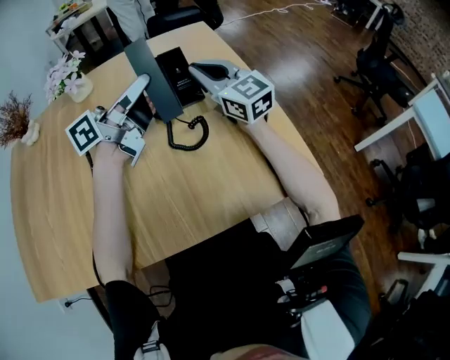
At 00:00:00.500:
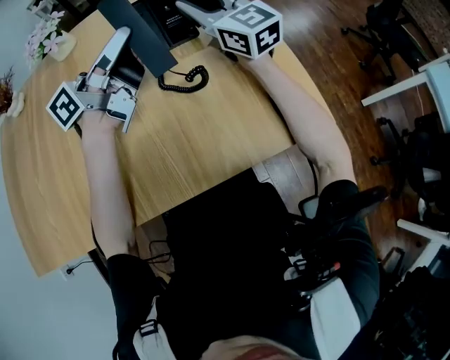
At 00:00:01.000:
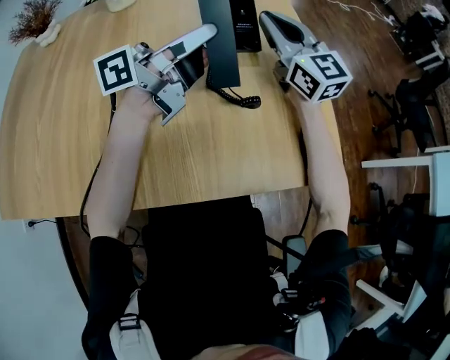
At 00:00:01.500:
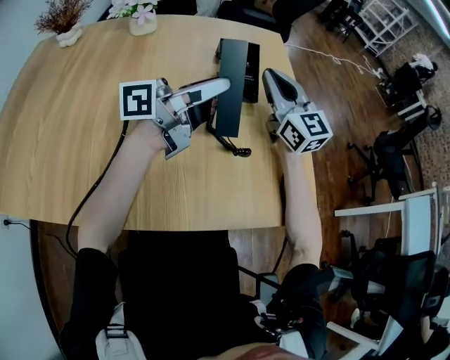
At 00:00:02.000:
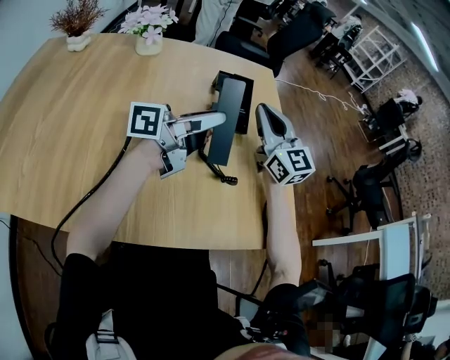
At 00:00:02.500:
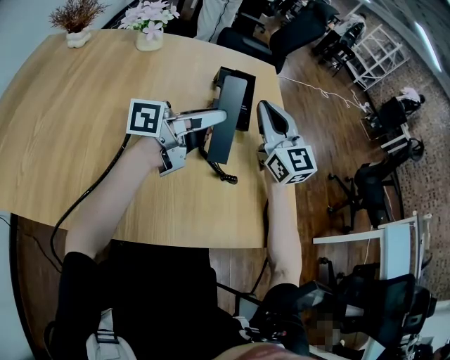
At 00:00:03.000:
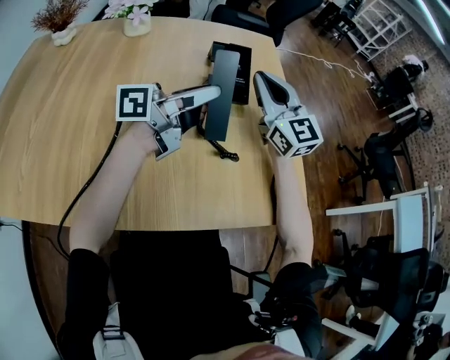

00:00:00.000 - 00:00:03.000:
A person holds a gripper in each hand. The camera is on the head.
00:00:00.000 - 00:00:01.500: The left gripper changes place by about 5 cm.
00:00:01.500 - 00:00:03.000: The grippers make only small movements.

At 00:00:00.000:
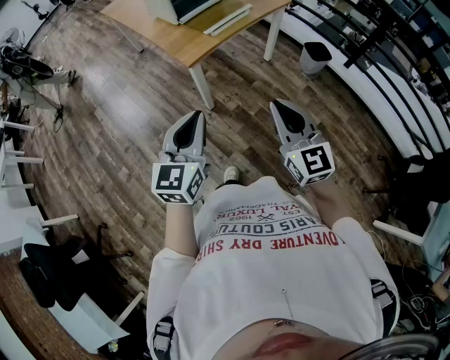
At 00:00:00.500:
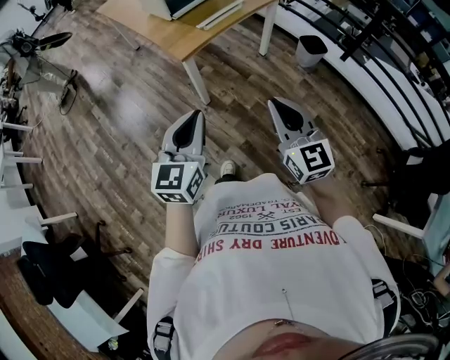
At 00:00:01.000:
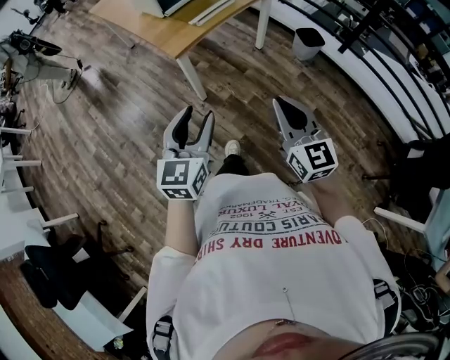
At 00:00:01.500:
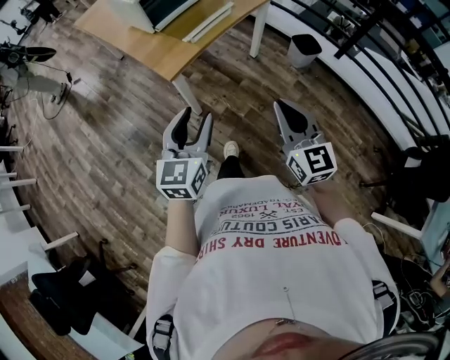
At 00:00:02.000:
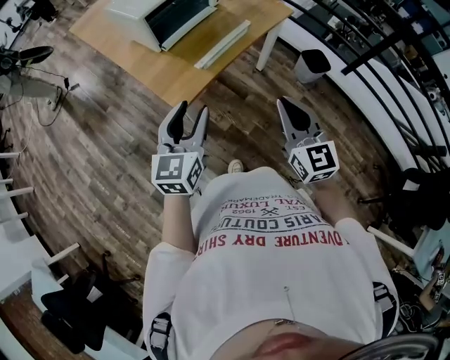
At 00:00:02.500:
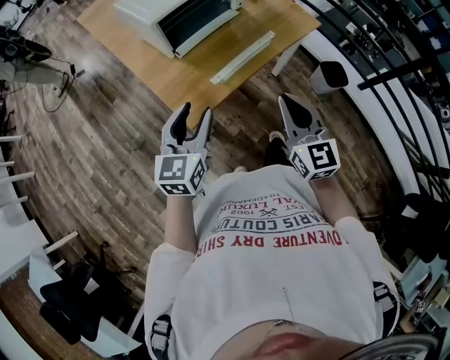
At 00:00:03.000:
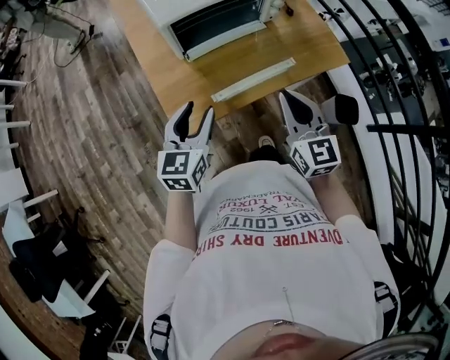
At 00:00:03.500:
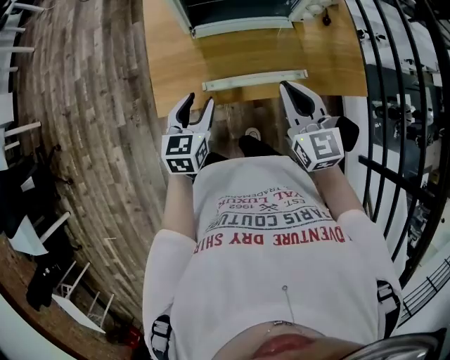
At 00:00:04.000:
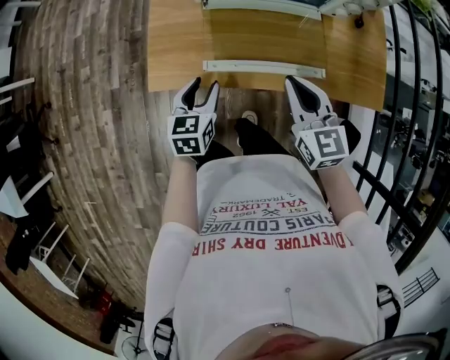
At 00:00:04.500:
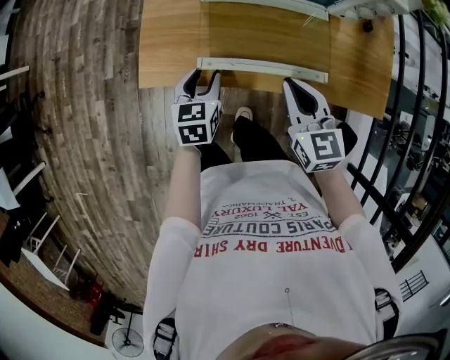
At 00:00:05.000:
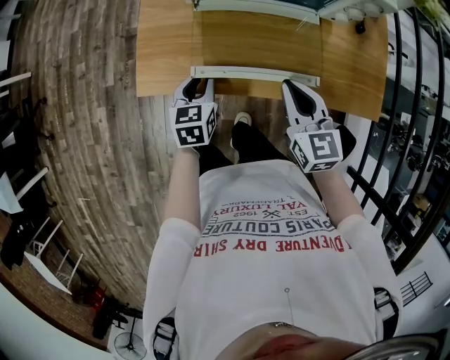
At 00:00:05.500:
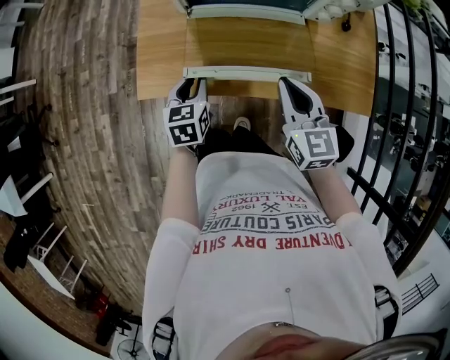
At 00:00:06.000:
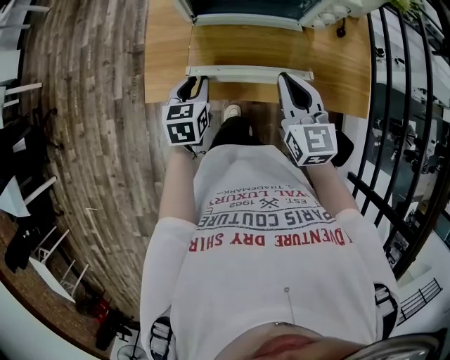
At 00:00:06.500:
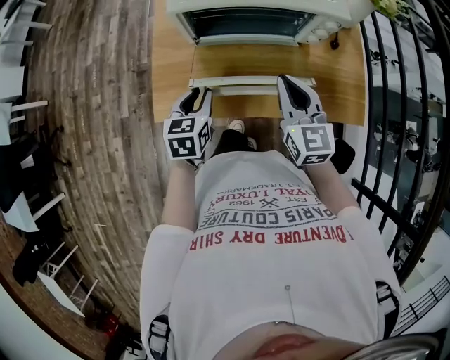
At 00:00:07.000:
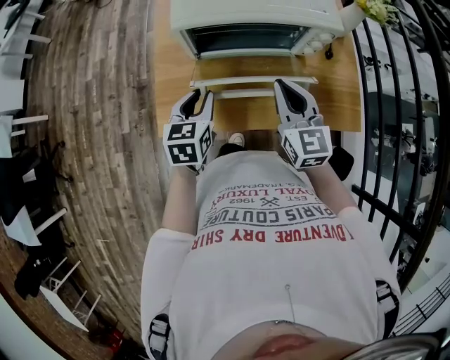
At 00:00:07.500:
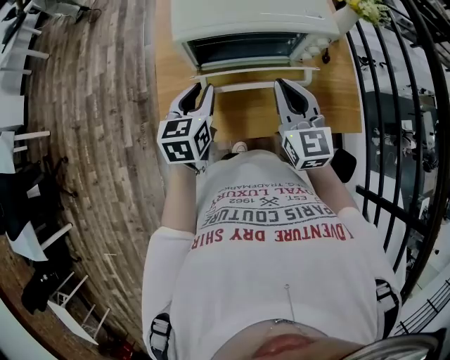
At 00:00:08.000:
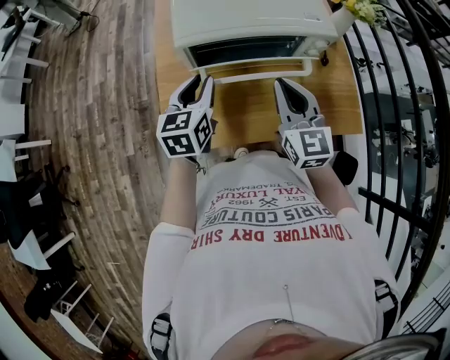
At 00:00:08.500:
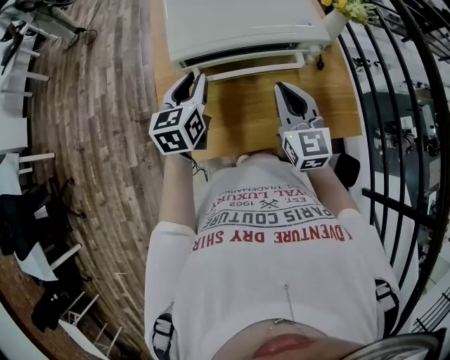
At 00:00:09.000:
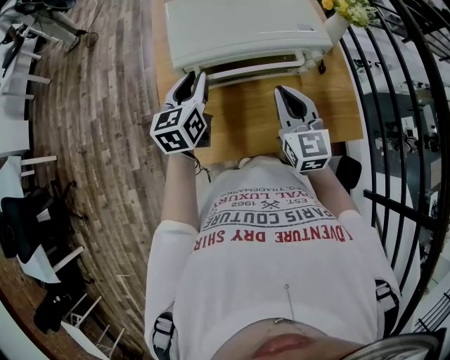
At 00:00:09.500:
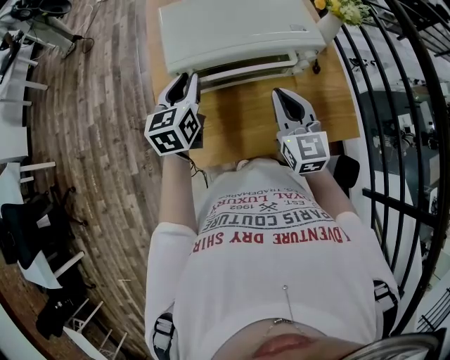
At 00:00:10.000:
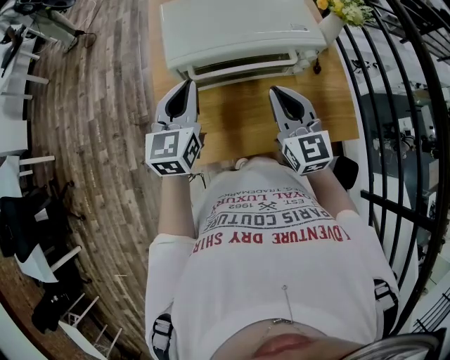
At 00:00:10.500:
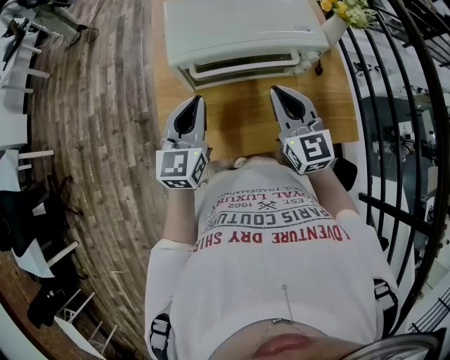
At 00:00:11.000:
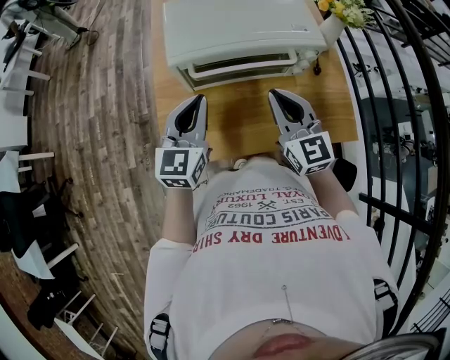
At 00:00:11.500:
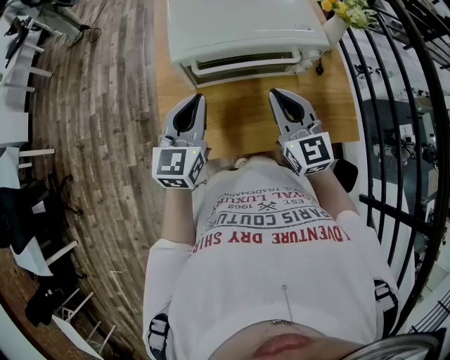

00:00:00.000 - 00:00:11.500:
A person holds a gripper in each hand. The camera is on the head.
00:00:00.000 - 00:00:02.000: The grippers both shift forward by roughly 30 cm. The left gripper opens its fingers.
00:00:02.000 - 00:00:04.000: The right gripper ends up about 35 cm from where it was, and swivels roughly 50 degrees; the left gripper heads downward, covering some 25 cm, and swivels about 60 degrees.
00:00:04.000 - 00:00:06.000: The left gripper ends up roughly 5 cm from where it was. Meanwhile the right gripper shifts by approximately 5 cm.
00:00:06.000 - 00:00:07.500: The right gripper is displaced upward and forward by roughly 10 cm. Meanwhile the left gripper goes about 15 cm upward and forward.
00:00:07.500 - 00:00:09.500: The left gripper goes roughly 10 cm forward.
00:00:09.500 - 00:00:11.500: The left gripper moves backward, about 10 cm, and closes its fingers.

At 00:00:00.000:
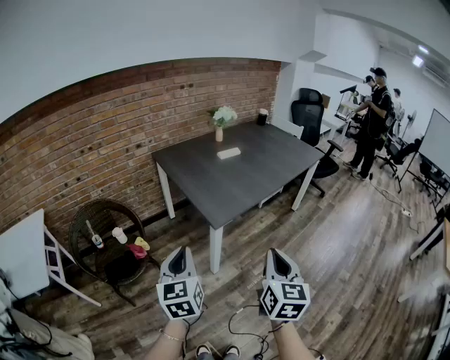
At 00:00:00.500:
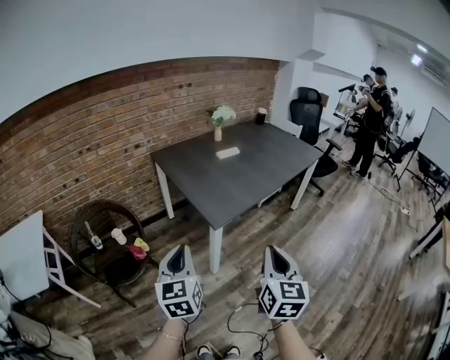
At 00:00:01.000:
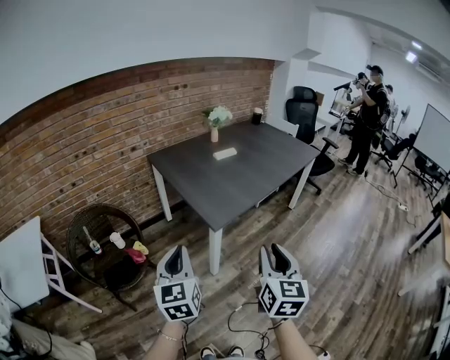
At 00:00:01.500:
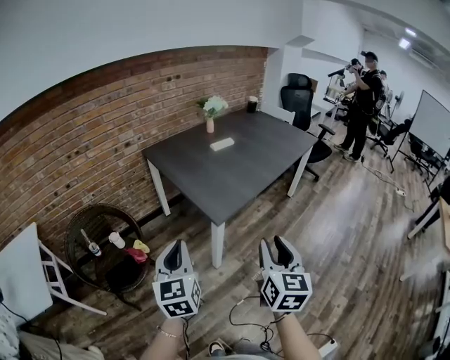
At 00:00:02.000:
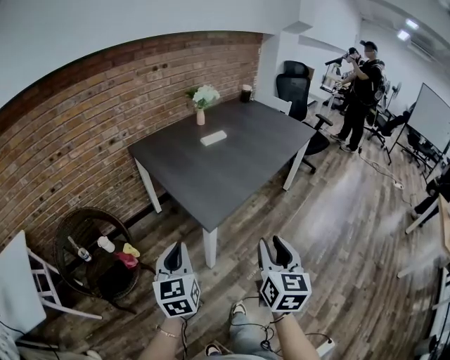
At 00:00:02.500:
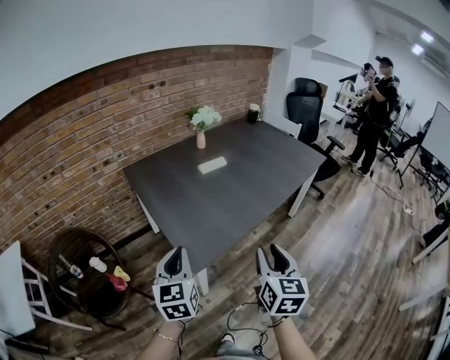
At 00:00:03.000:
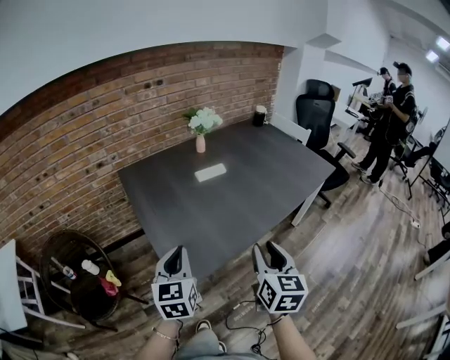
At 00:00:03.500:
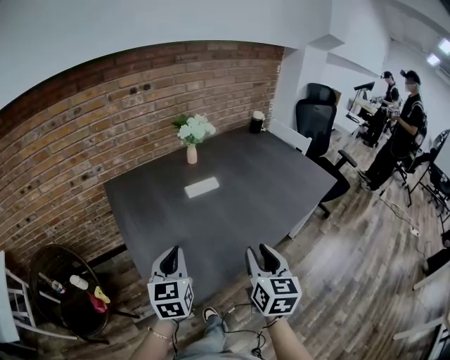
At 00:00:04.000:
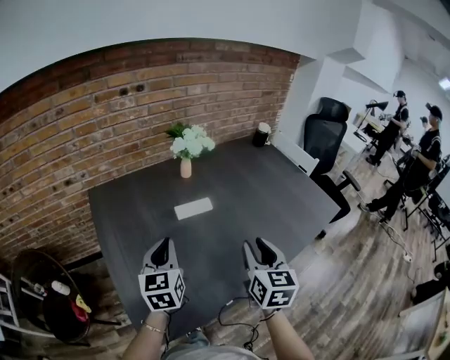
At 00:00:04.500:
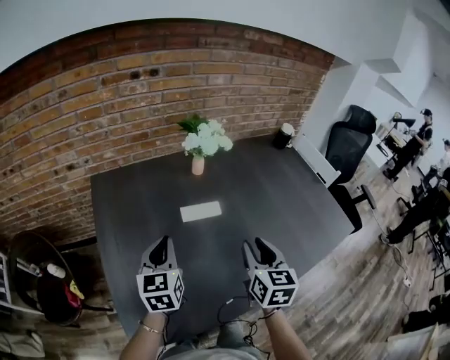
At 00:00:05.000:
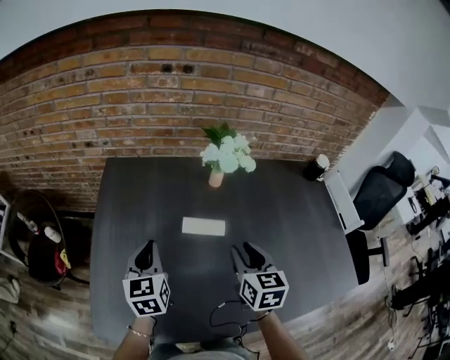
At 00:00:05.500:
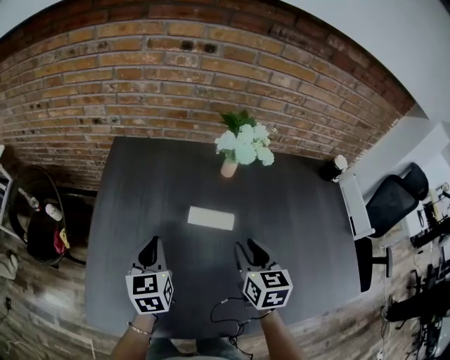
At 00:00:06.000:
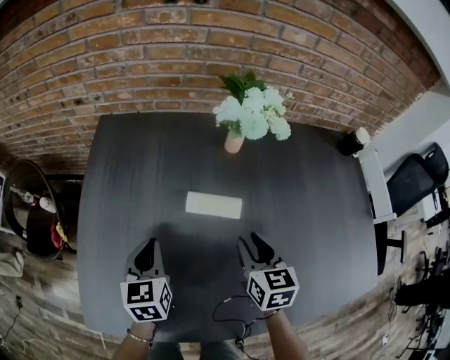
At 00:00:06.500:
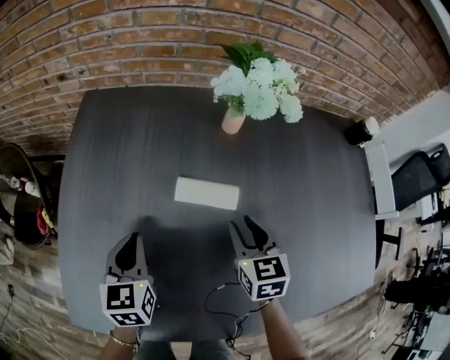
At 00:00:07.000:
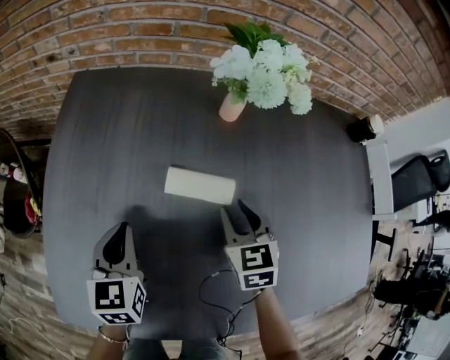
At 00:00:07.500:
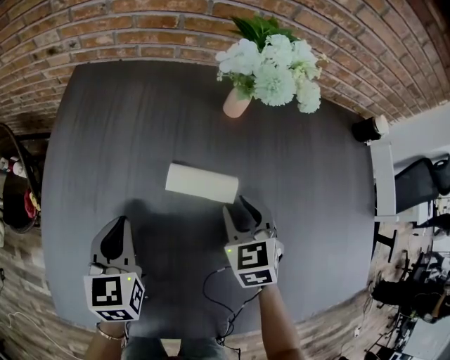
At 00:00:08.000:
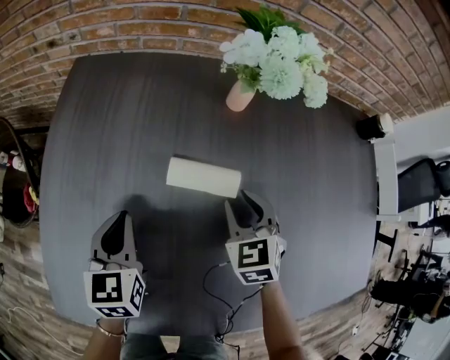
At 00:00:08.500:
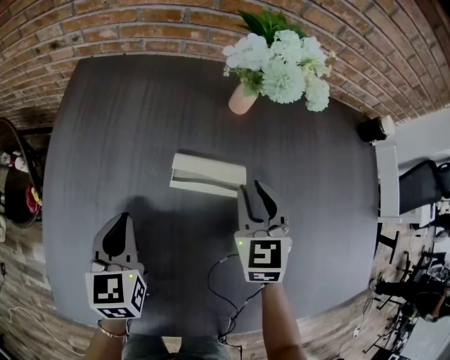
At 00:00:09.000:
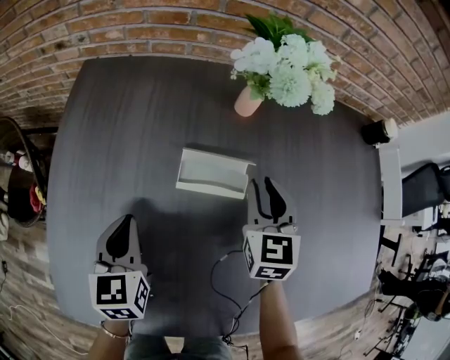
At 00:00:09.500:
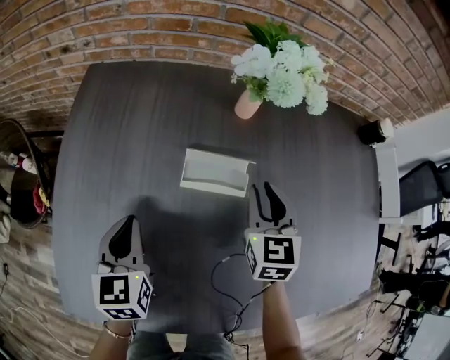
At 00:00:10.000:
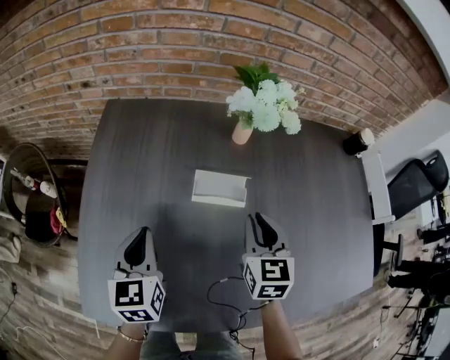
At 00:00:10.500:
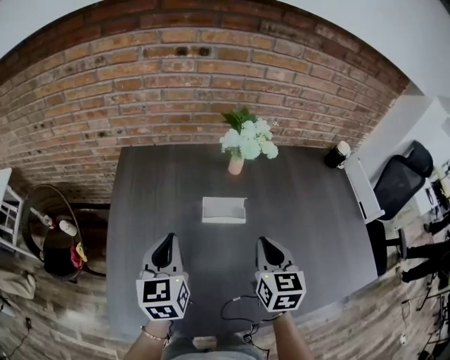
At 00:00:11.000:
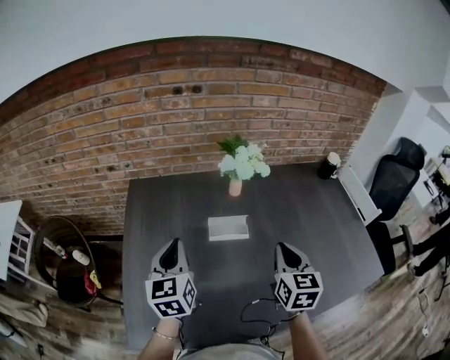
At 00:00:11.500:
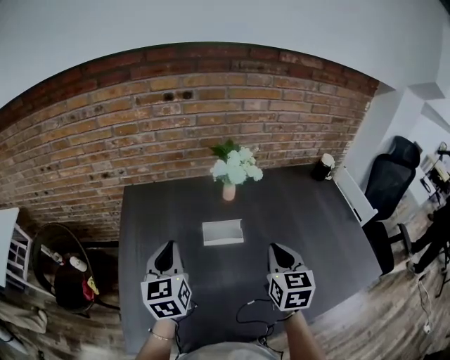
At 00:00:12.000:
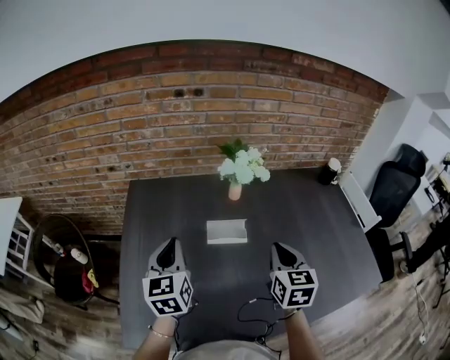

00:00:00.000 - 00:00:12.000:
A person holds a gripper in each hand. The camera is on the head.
00:00:00.000 - 00:00:02.000: The two grippers go roughly 10 cm forward. The right gripper opens up.
00:00:02.000 - 00:00:04.000: The pair of grippers is taken forward, some 60 cm.
00:00:04.000 - 00:00:06.000: The left gripper shifts some 15 cm downward, and changes its angle by about 30 degrees. The right gripper ends up some 30 cm from where it was, and changes its angle by roughly 40 degrees.
00:00:06.000 - 00:00:08.000: The right gripper is displaced downward and forward by about 10 cm, and rotates some 30 degrees.
00:00:08.000 - 00:00:10.000: Both grippers travel together upward, about 10 cm. The right gripper changes its angle by some 30 degrees.
00:00:10.000 - 00:00:12.000: The left gripper heads upward, covering about 15 cm, while the right gripper travels upward and backward by approximately 15 cm.
